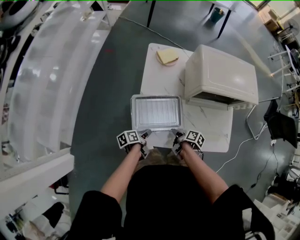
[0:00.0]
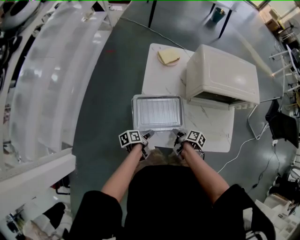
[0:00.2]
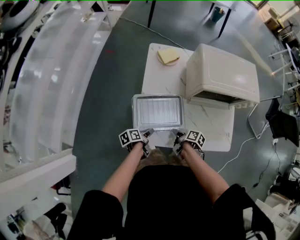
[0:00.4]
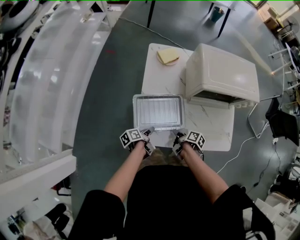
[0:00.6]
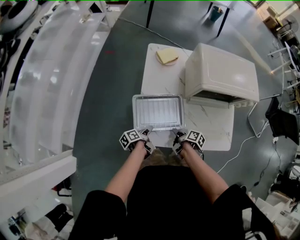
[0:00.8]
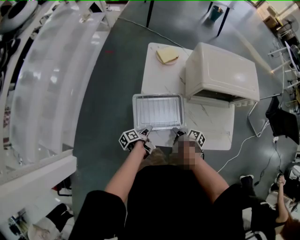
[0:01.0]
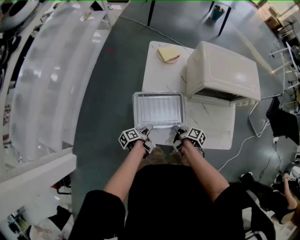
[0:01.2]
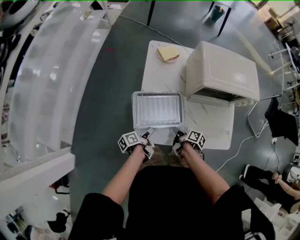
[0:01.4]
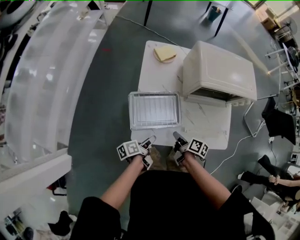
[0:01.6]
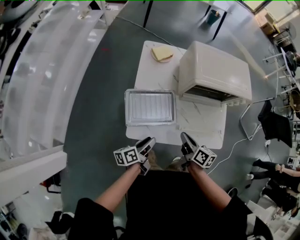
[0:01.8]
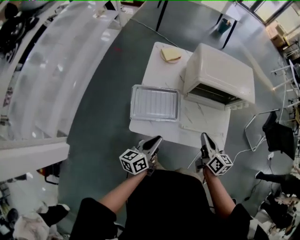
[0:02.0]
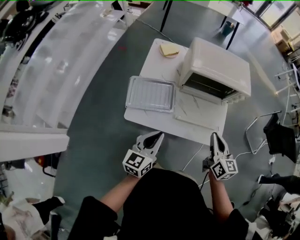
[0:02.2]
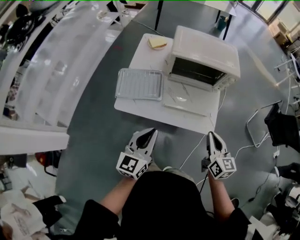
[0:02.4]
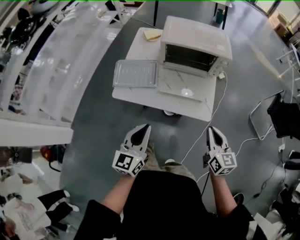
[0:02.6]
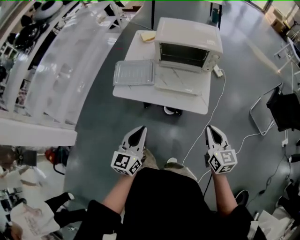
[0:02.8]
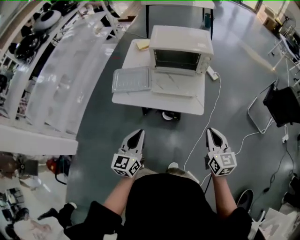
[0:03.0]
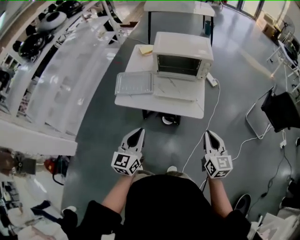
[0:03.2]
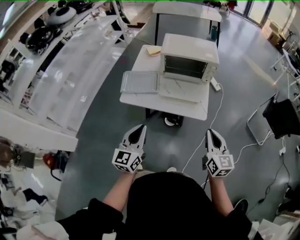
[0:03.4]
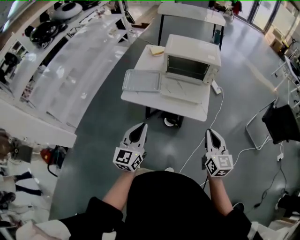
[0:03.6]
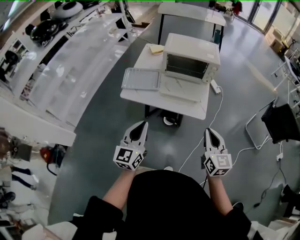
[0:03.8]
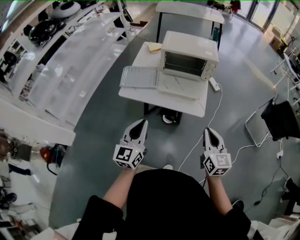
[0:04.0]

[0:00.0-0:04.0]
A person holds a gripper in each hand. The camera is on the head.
0:01.4 to 0:02.6: The right gripper moves some 50 cm, and rolls counterclockwise, seen from behind, by roughly 70 degrees.
0:02.6 to 0:04.0: The right gripper ends up roughly 15 cm from where it was.

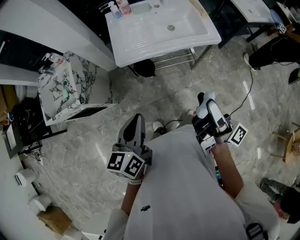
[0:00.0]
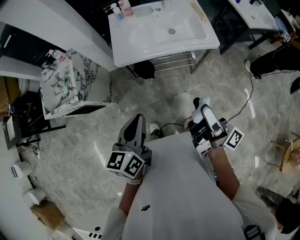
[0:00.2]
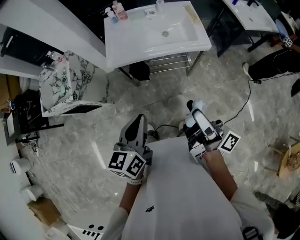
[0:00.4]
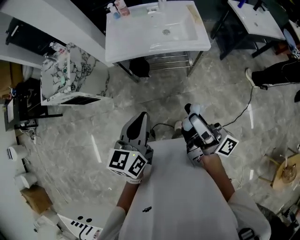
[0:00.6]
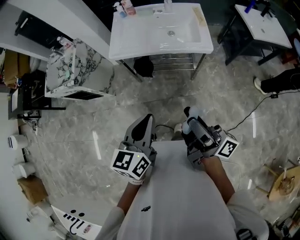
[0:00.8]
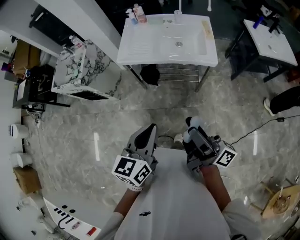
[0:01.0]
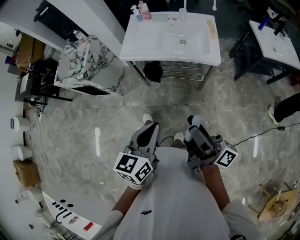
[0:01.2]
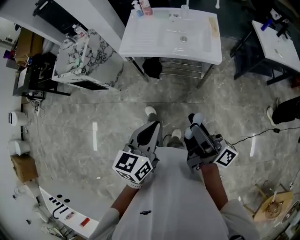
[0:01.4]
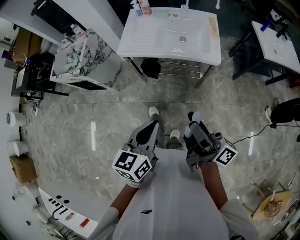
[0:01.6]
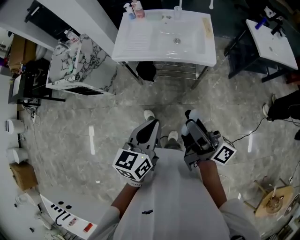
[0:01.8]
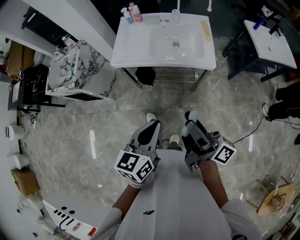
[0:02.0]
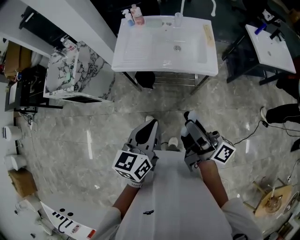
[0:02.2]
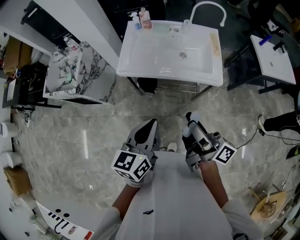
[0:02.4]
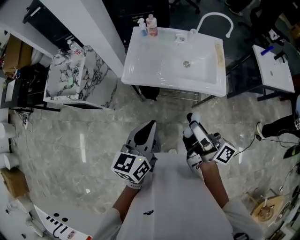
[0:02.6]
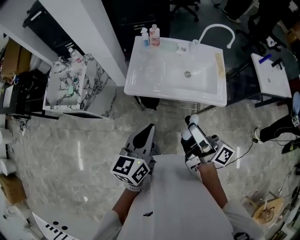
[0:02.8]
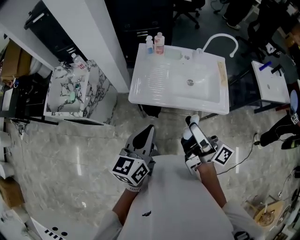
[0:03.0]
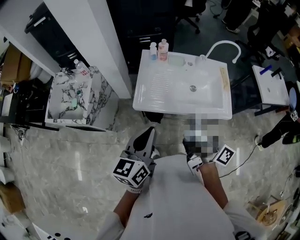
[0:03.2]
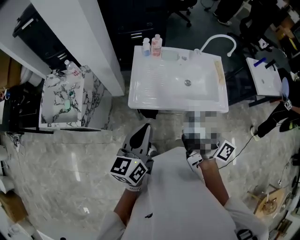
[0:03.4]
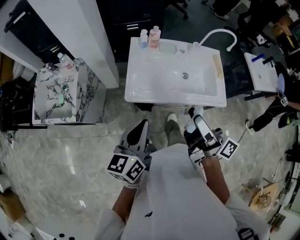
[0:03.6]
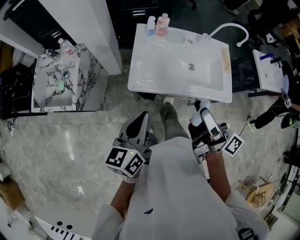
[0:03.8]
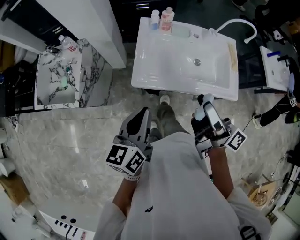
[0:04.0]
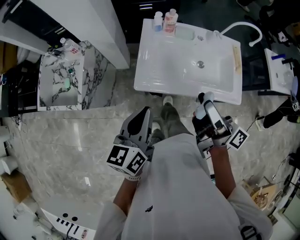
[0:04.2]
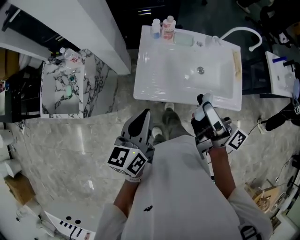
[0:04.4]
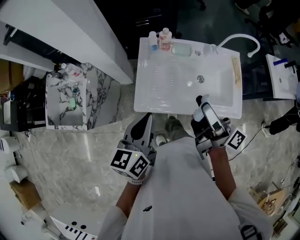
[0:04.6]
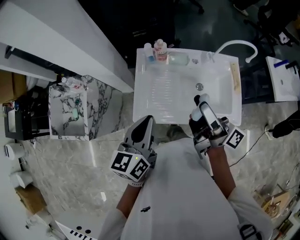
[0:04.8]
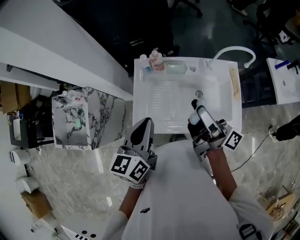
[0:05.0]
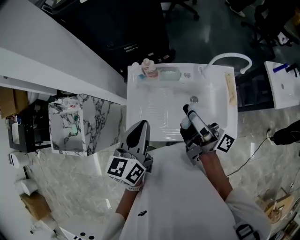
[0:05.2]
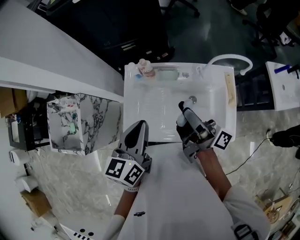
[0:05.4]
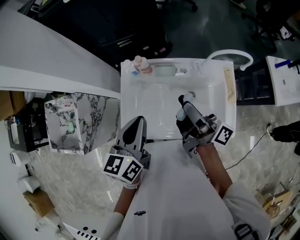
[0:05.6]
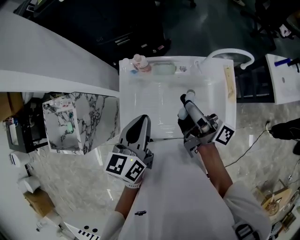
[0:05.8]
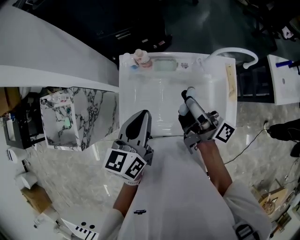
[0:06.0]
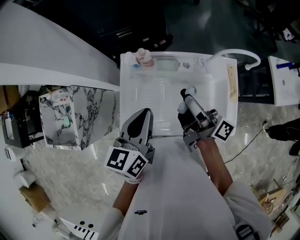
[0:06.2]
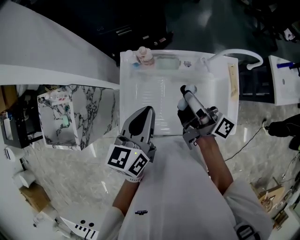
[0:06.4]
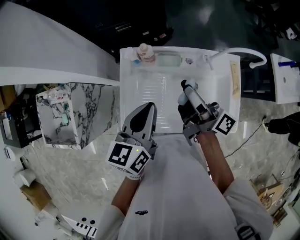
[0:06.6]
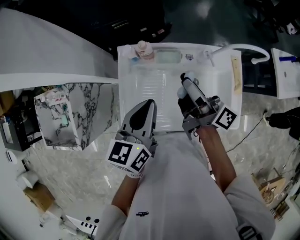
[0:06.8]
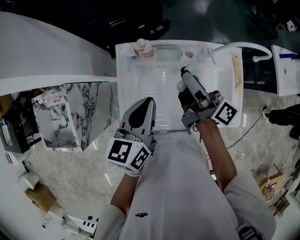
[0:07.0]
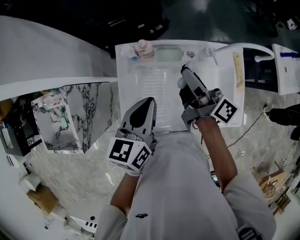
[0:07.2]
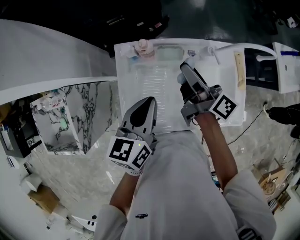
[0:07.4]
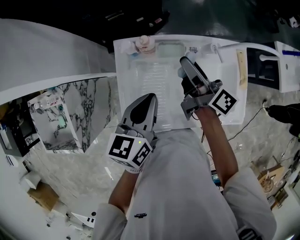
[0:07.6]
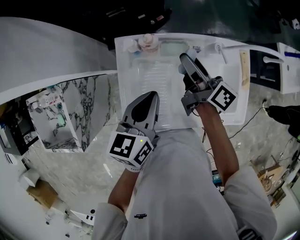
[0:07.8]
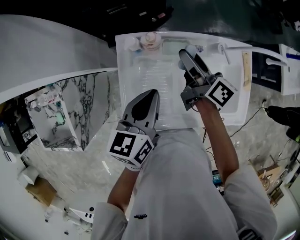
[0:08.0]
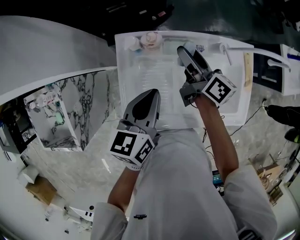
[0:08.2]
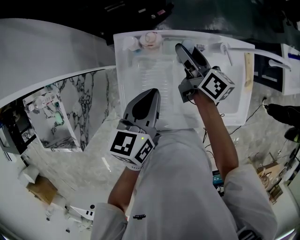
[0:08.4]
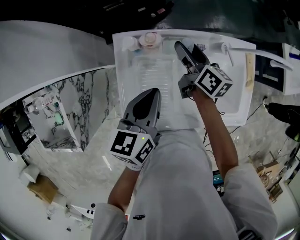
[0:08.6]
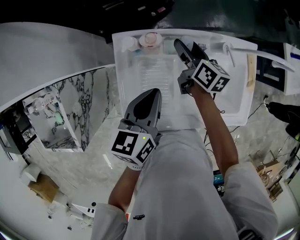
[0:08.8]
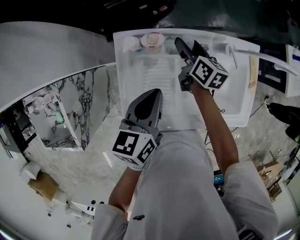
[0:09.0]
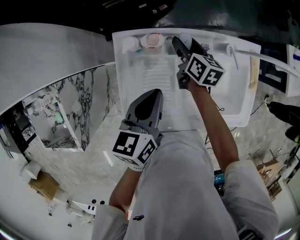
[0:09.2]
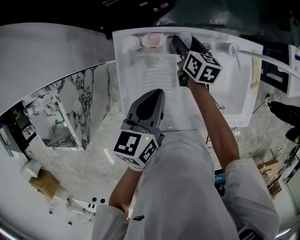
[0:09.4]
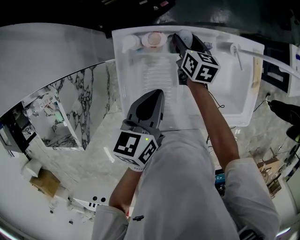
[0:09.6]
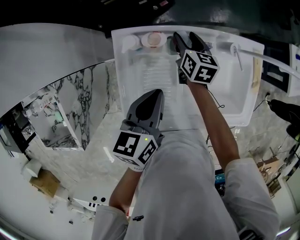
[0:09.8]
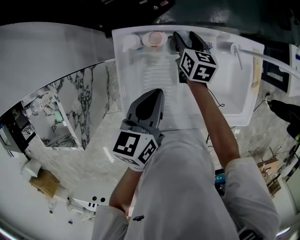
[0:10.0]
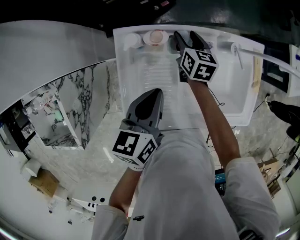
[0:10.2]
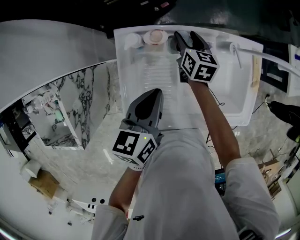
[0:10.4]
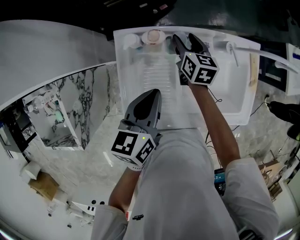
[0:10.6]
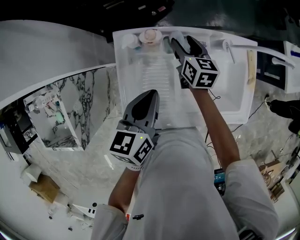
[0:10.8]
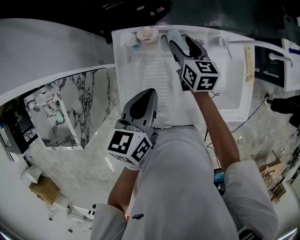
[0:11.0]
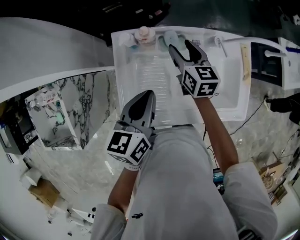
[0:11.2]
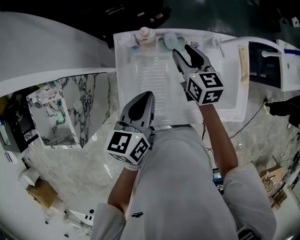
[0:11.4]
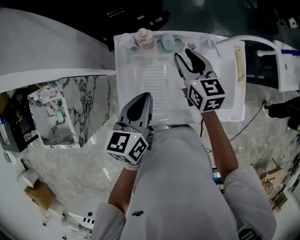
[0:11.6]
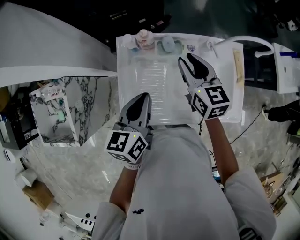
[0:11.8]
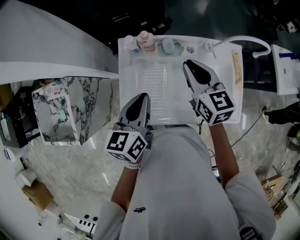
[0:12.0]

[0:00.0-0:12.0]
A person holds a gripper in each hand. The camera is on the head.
0:00.0 to 0:01.6: The left gripper moves to the right and backward, approximately 30 cm. Meanwhile the right gripper moves to the right and backward, some 20 cm, and swivels some 20 degrees.
0:01.6 to 0:03.0: Both grippers travel together forward and to the left, approximately 30 cm.
0:03.0 to 0:04.4: The left gripper heads forward and to the left, covering roughly 15 cm. The right gripper goes some 15 cm forward.
0:04.4 to 0:06.0: Both grippers travel together forward and to the right, approximately 25 cm.
0:06.0 to 0:07.6: The right gripper travels forward and downward by some 15 cm, and turns by approximately 20 degrees. Meanwhile the left gripper moves downward and forward, approximately 10 cm.
0:07.6 to 0:09.0: The right gripper shifts roughly 20 cm downward and forward, and swivels approximately 40 degrees, while the left gripper moves downward, about 5 cm.
0:09.0 to 0:10.4: The grippers move only a little.
0:10.4 to 0:12.0: The left gripper heads backward and upward, covering about 10 cm. The right gripper travels upward and backward by approximately 25 cm, rotates about 30 degrees, and closes its fingers.

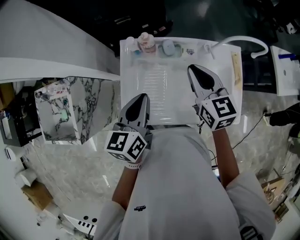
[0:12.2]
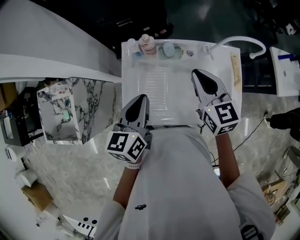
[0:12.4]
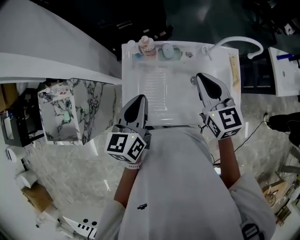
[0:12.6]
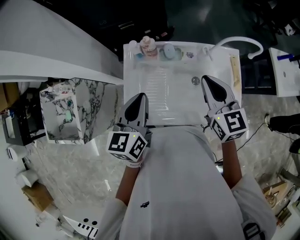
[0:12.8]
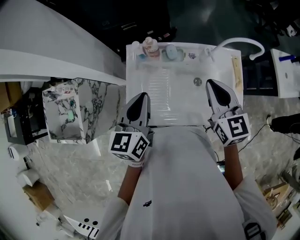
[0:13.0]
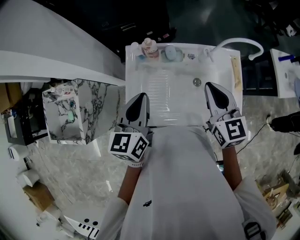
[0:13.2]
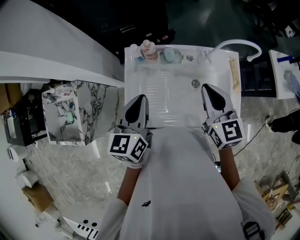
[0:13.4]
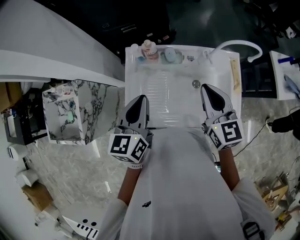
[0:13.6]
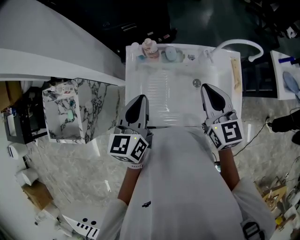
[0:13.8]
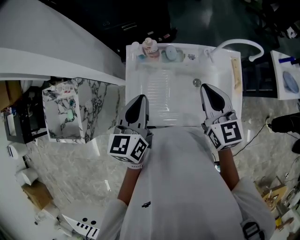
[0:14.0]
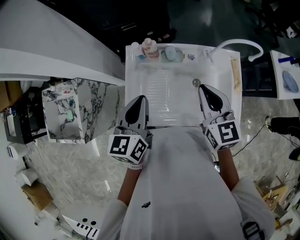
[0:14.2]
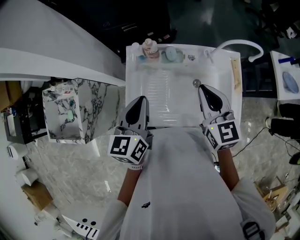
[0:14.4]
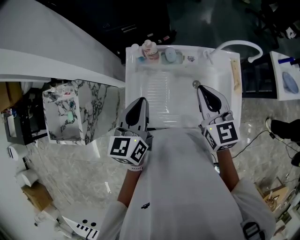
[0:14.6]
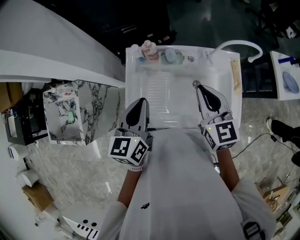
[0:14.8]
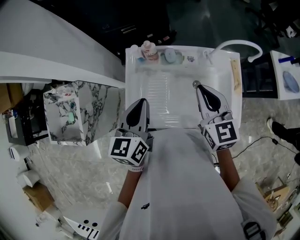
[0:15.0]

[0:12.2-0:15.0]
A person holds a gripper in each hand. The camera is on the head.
0:12.2 to 0:13.6: The right gripper shifts about 5 cm backward.
0:13.6 to 0:15.0: Both grippers stay about where they are.

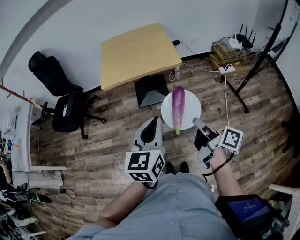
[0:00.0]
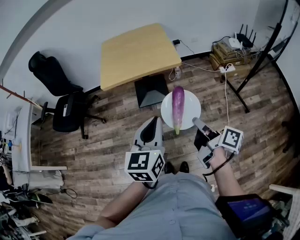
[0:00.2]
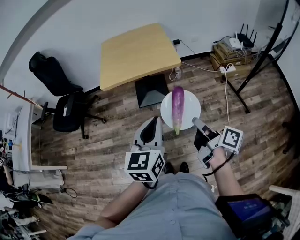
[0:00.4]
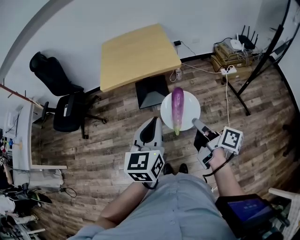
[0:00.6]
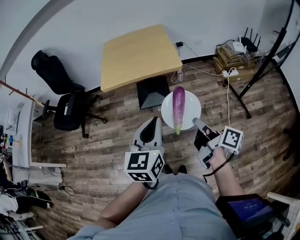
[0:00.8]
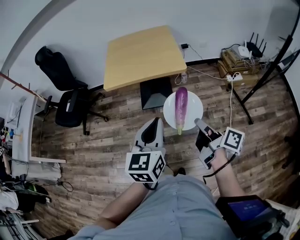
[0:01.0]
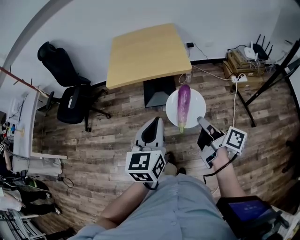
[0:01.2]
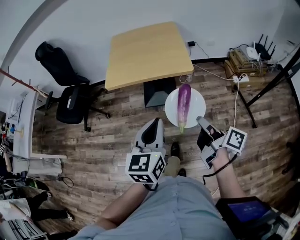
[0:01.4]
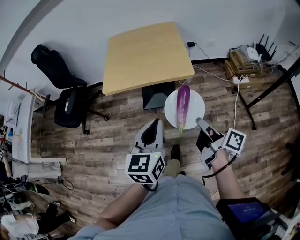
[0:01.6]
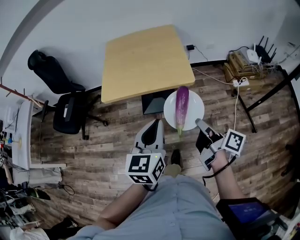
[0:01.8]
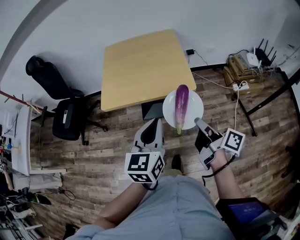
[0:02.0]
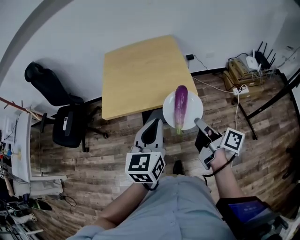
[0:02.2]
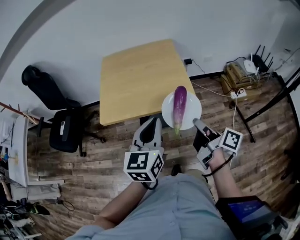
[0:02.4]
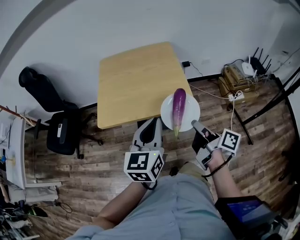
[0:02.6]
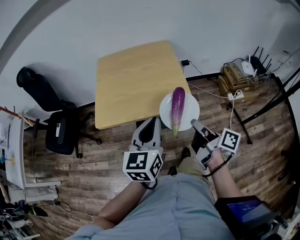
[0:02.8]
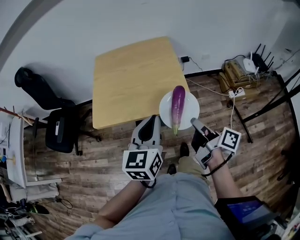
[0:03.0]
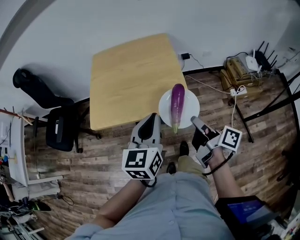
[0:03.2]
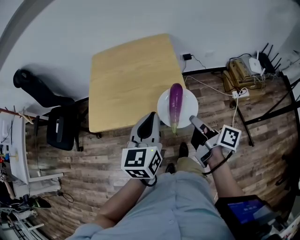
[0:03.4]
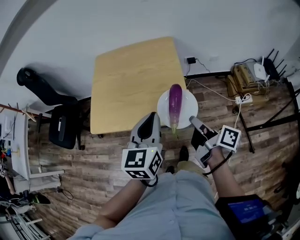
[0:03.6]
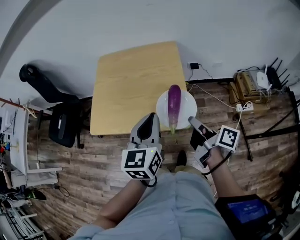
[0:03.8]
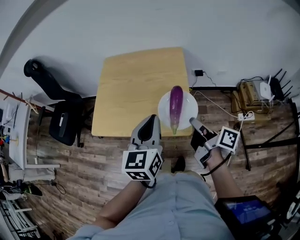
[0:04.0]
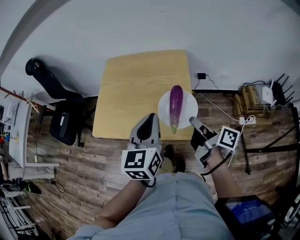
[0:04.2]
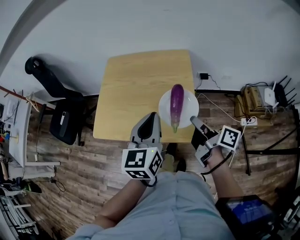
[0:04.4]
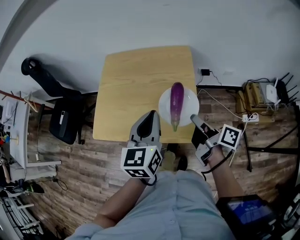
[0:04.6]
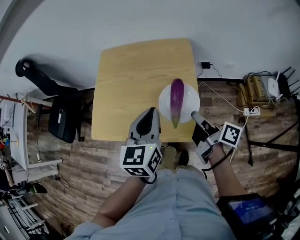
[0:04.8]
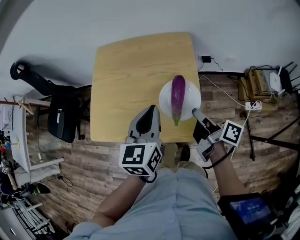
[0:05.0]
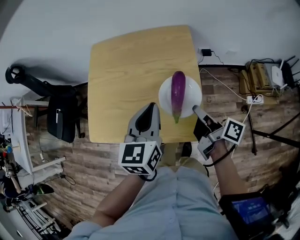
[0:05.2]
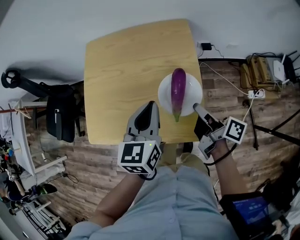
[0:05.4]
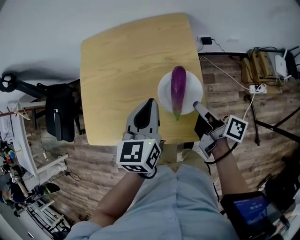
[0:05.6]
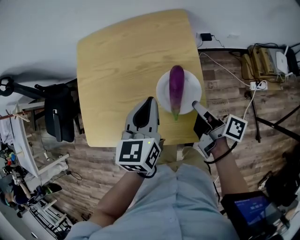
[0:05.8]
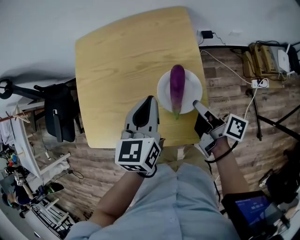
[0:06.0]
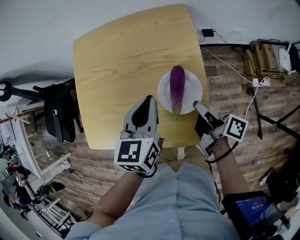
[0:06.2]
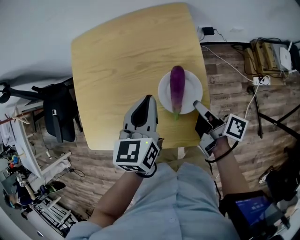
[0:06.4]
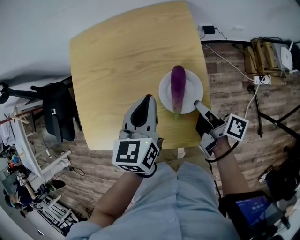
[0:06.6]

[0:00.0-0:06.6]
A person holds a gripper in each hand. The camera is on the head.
0:00.0 to 0:01.6: The left gripper changes place by roughly 15 cm.
0:01.6 to 0:03.2: The left gripper ends up some 25 cm from where it was.
0:03.2 to 0:05.0: The left gripper changes place by about 20 cm.
0:05.0 to 0:06.6: The left gripper travels downward by some 10 cm.
